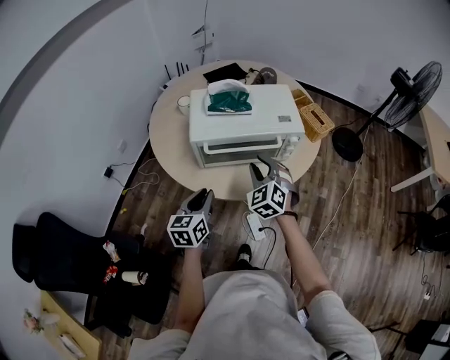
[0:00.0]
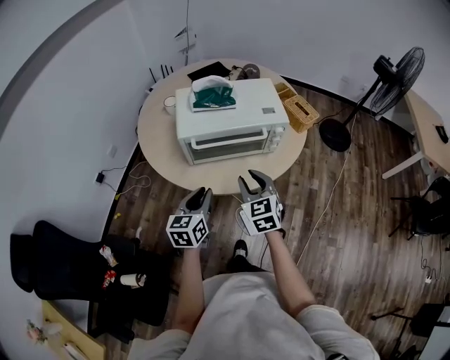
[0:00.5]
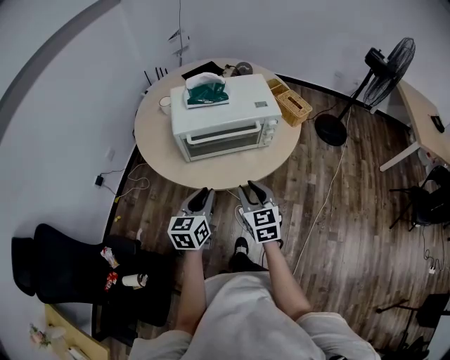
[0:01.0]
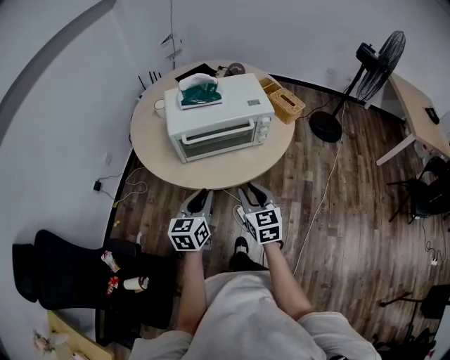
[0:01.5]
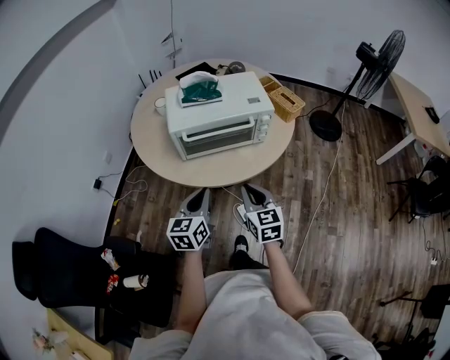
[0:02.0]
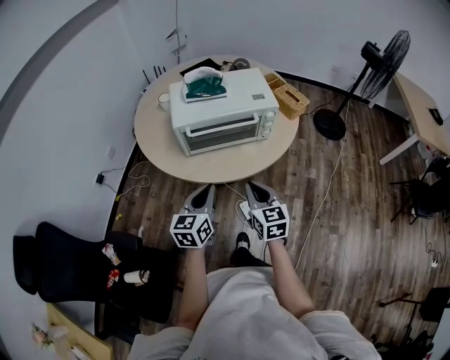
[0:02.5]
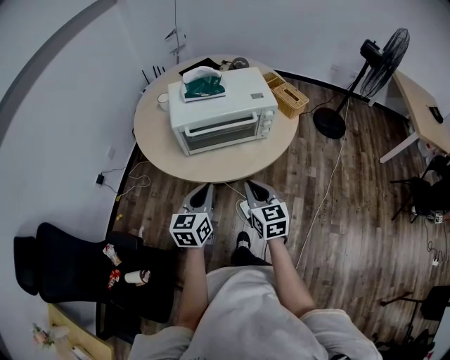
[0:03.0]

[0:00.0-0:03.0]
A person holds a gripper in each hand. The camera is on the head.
0:00.0 to 0:01.5: The left gripper shifts about 10 cm backward and to the right. The right gripper moves backward, roughly 15 cm, and twists about 40 degrees clockwise, seen from behind.
0:01.5 to 0:03.0: The right gripper closes its fingers.

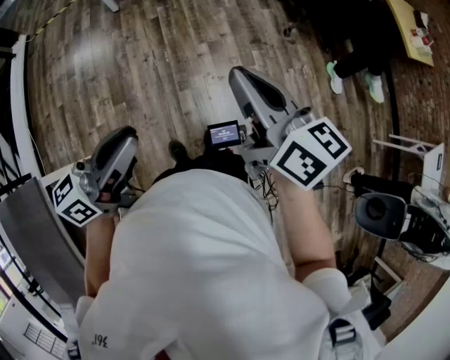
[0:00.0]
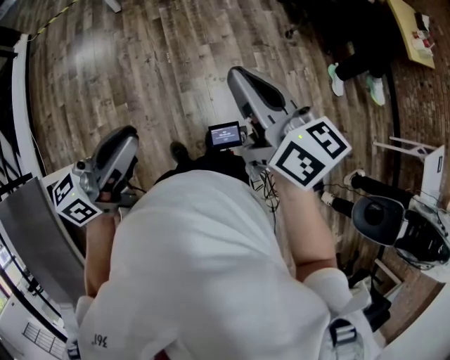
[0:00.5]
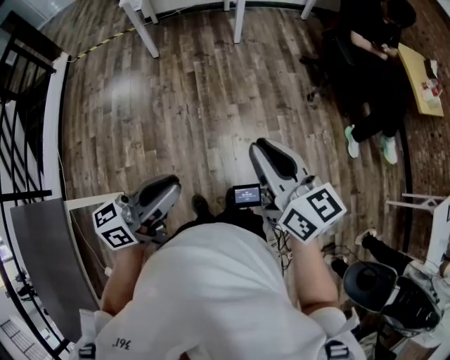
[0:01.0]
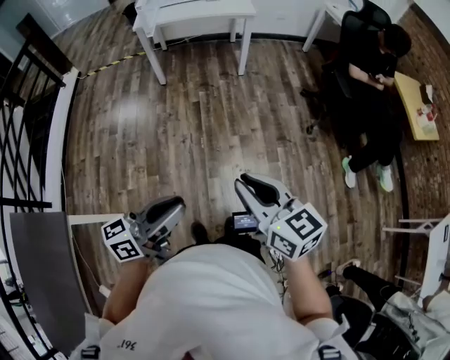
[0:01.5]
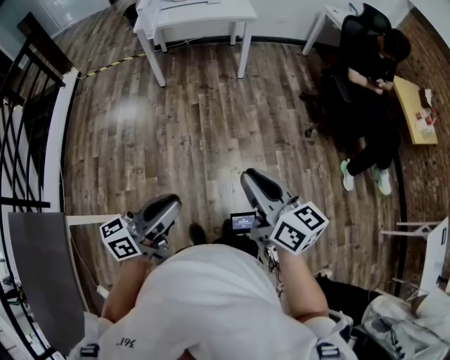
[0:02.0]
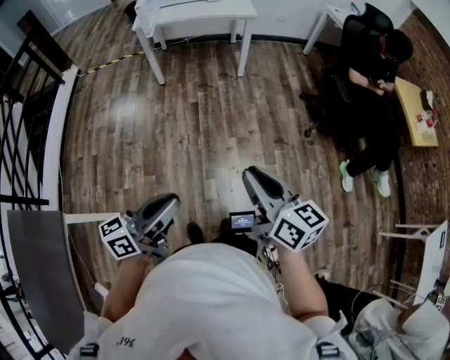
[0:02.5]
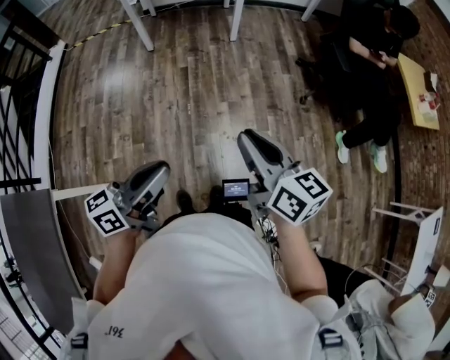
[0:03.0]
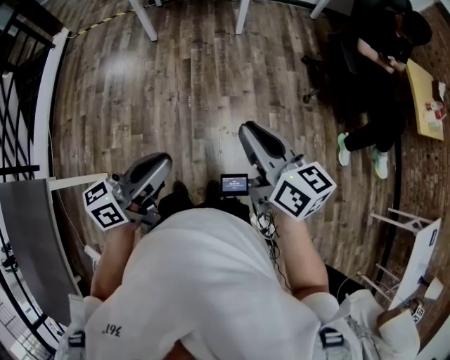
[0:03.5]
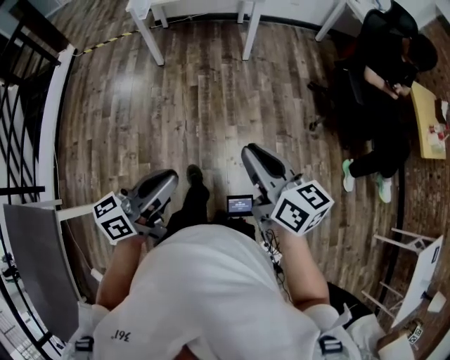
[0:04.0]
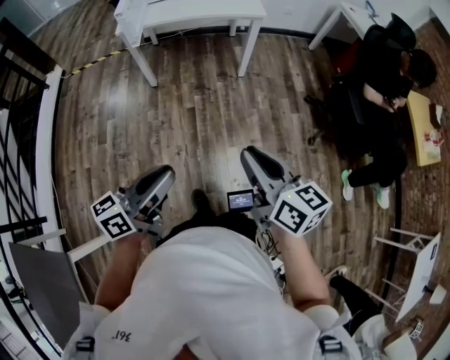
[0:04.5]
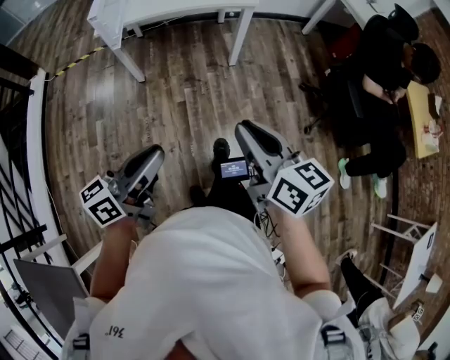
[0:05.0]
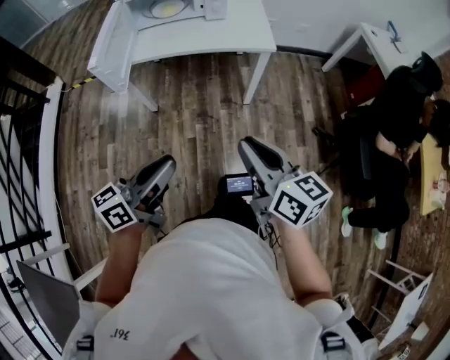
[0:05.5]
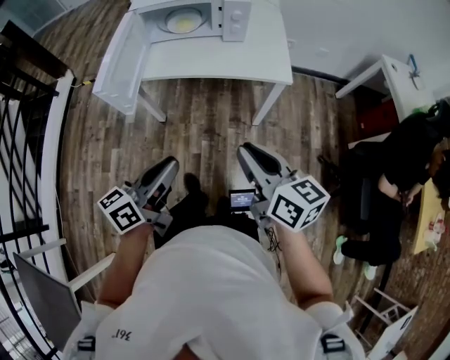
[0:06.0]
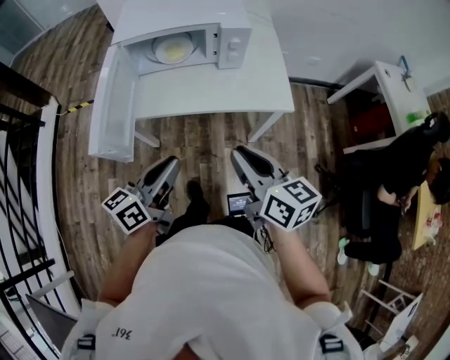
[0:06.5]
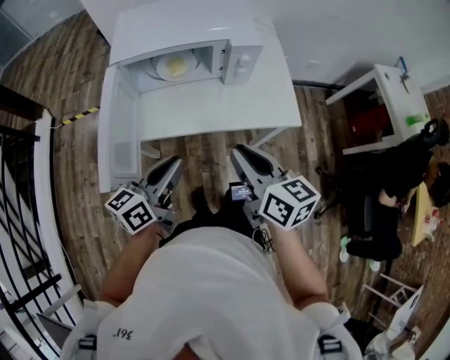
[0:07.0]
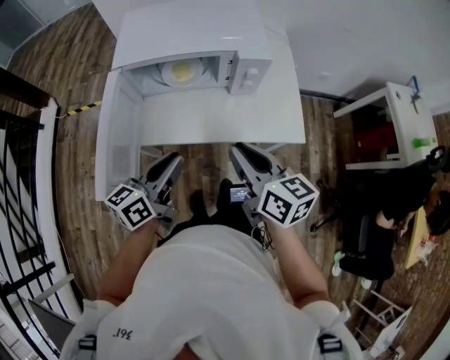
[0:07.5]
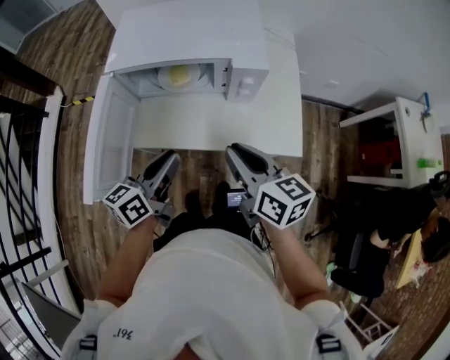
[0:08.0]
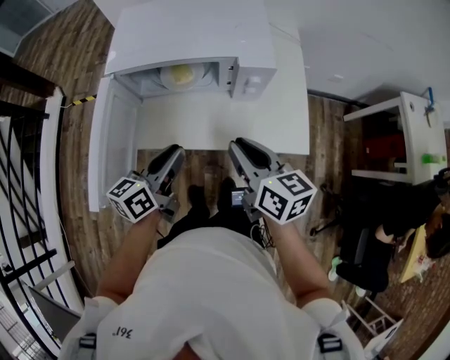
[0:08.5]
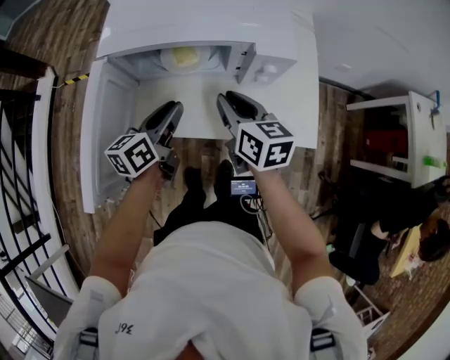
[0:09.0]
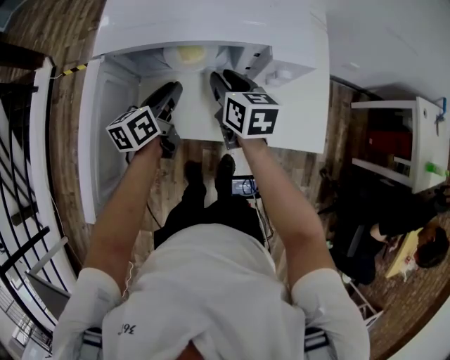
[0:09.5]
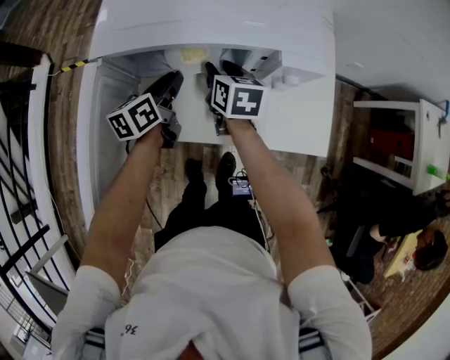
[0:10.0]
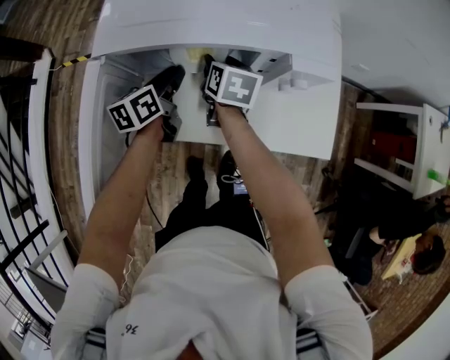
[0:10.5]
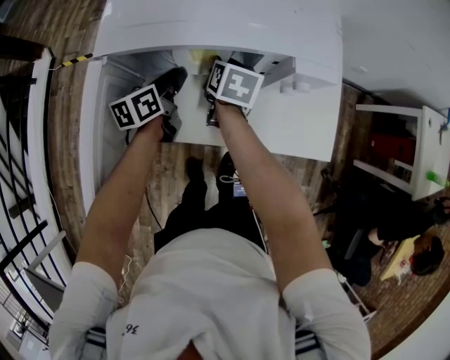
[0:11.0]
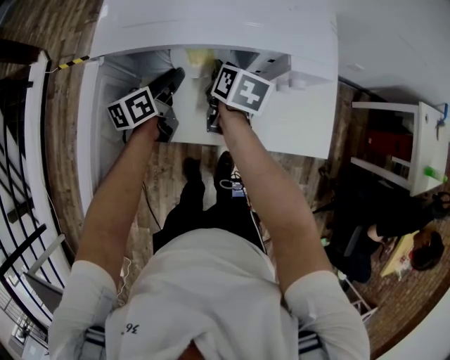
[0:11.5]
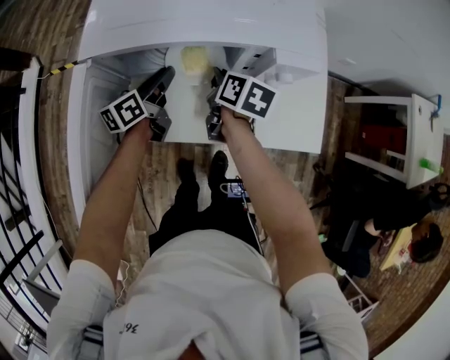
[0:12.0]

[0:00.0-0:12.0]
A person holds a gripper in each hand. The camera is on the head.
0:00.0 to 0:02.0: The right gripper shifts by some 5 cm.
0:02.0 to 0:04.0: Both grippers move forward, approximately 15 cm.
0:04.0 to 0:06.0: The pair of grippers is taken forward, roughly 60 cm.
0:06.0 to 0:08.0: The grippers both shift forward by about 35 cm.
0:08.0 to 0:10.0: The left gripper heads forward and downward, covering some 25 cm. The right gripper is displaced forward, downward and to the left by roughly 35 cm, changes its angle by approximately 20 degrees, and opens its fingers.
0:10.0 to 0:12.0: The right gripper rotates roughly 20 degrees.

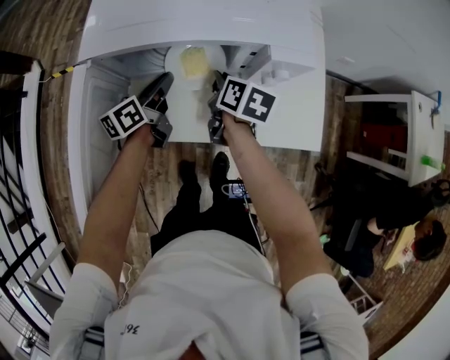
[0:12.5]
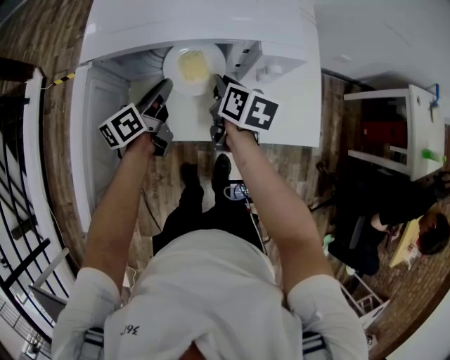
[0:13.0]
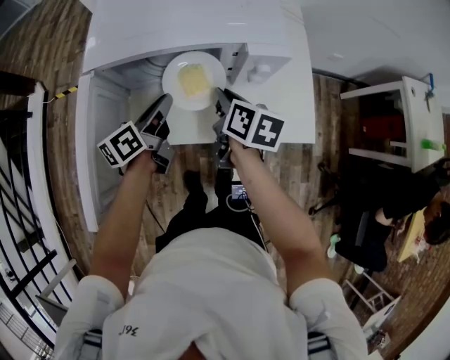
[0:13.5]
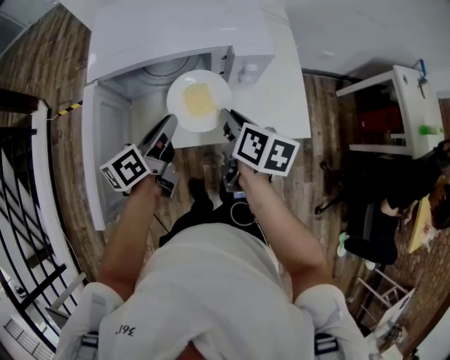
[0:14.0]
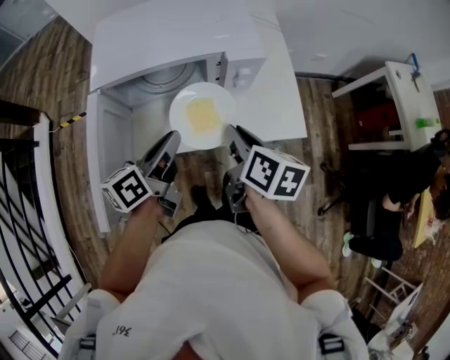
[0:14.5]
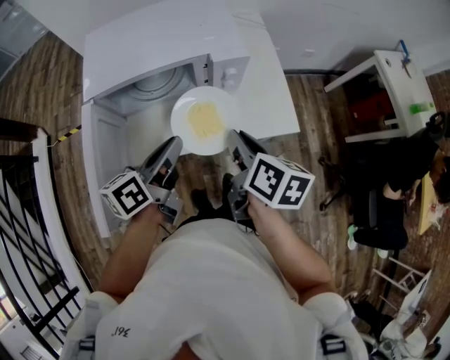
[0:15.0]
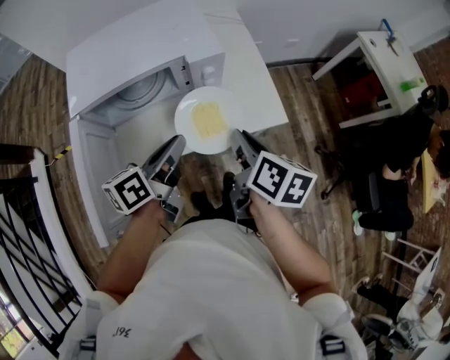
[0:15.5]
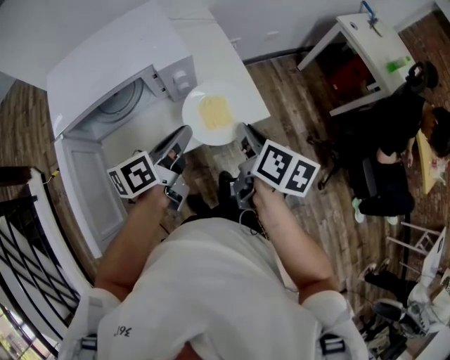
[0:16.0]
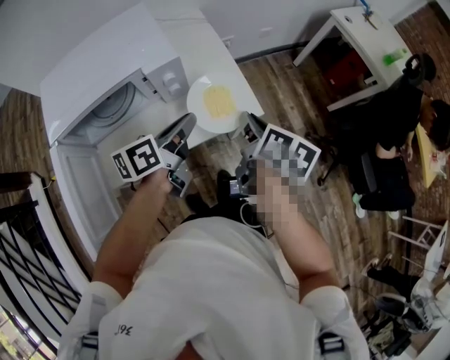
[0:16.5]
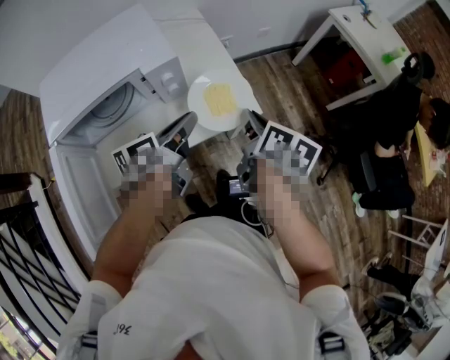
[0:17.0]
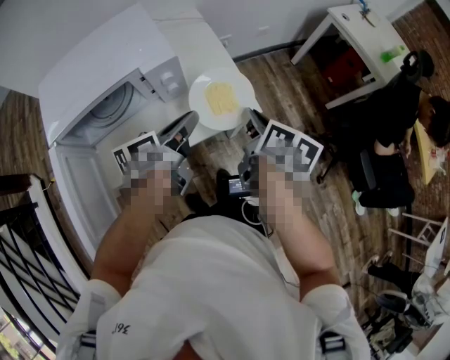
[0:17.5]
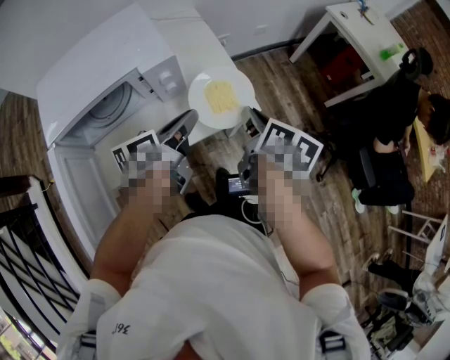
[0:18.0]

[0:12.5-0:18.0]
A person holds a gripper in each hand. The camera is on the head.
0:12.5 to 0:14.5: The grippers both shift backward, upward and to the right by about 25 cm.
0:14.5 to 0:16.0: Both grippers move to the right, approximately 15 cm. The left gripper turns by approximately 20 degrees; the right gripper swivels some 20 degrees.
0:16.0 to 0:18.0: The right gripper changes place by roughly 5 cm, while the left gripper moves approximately 5 cm.

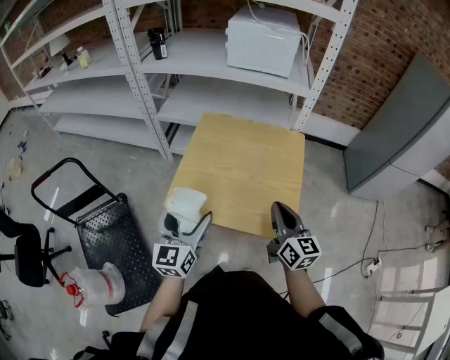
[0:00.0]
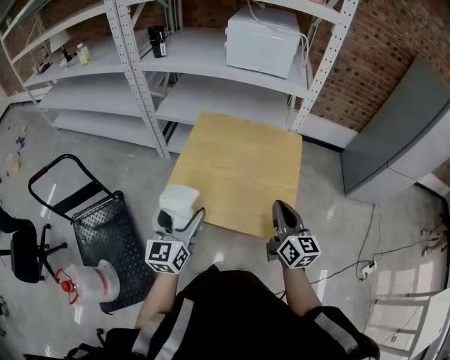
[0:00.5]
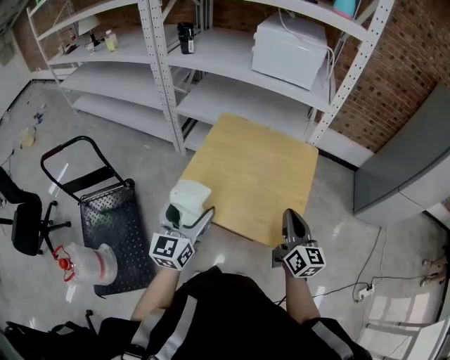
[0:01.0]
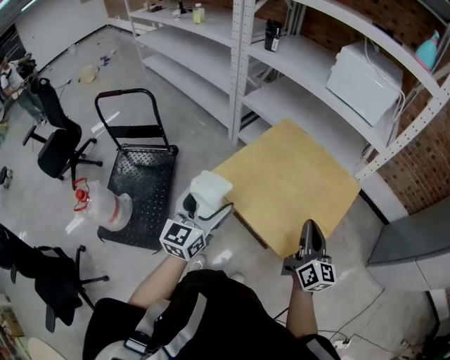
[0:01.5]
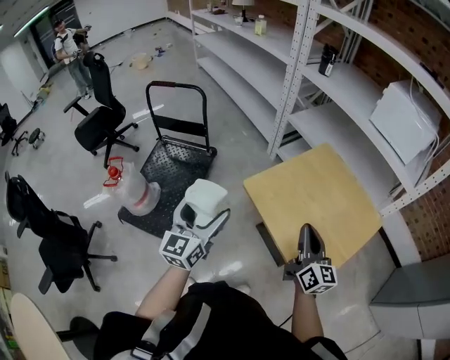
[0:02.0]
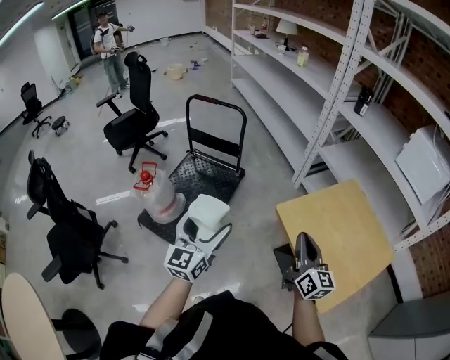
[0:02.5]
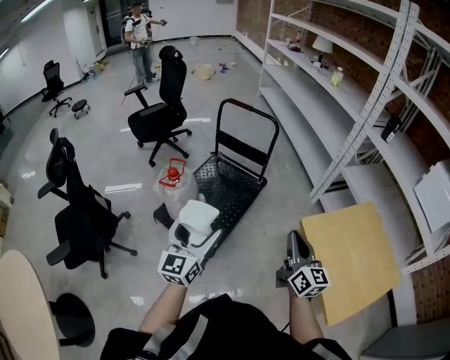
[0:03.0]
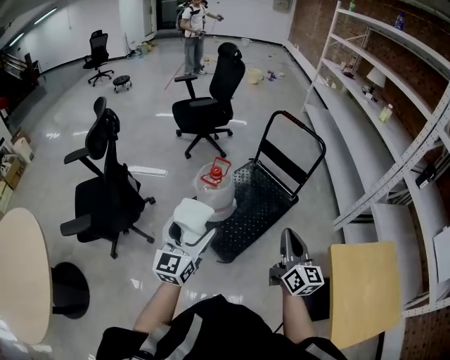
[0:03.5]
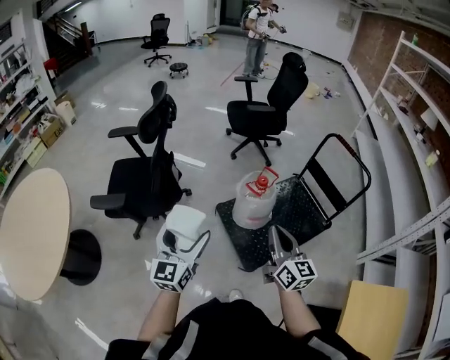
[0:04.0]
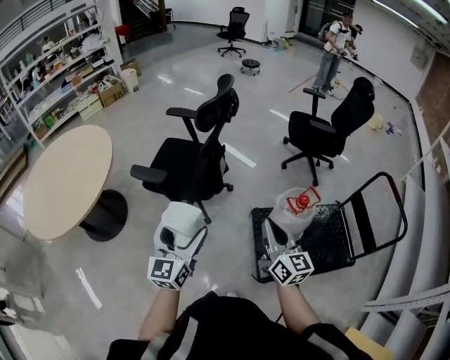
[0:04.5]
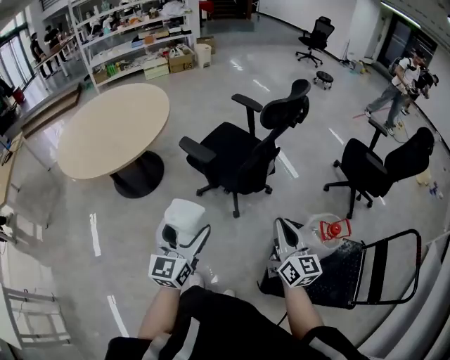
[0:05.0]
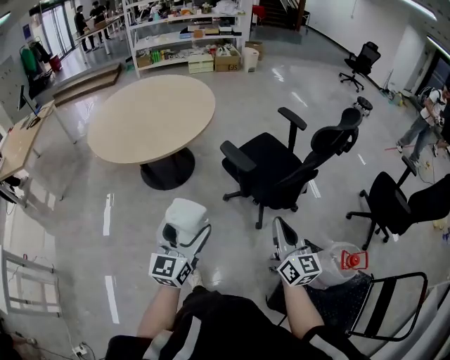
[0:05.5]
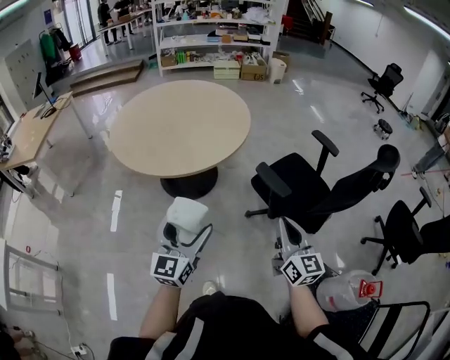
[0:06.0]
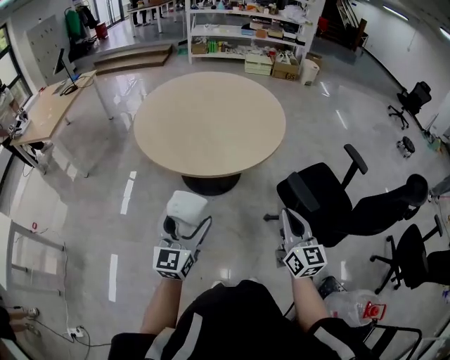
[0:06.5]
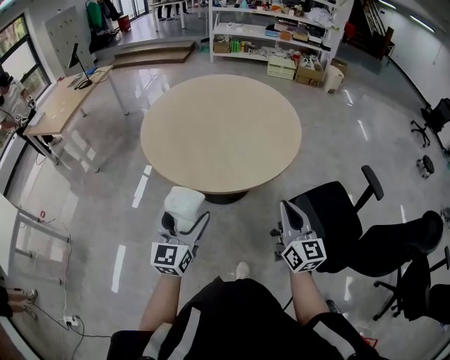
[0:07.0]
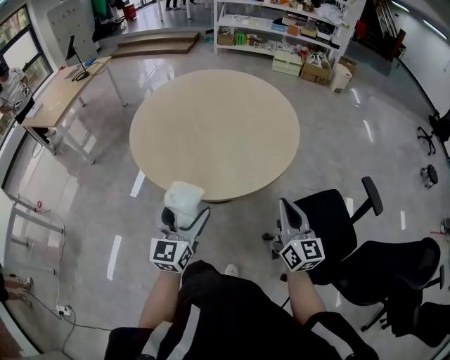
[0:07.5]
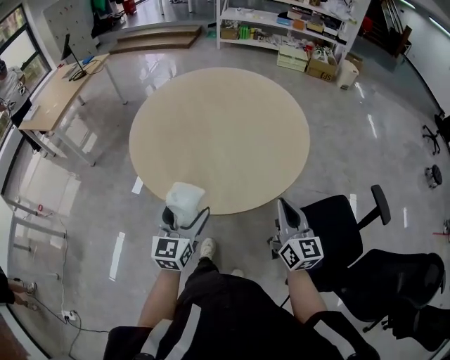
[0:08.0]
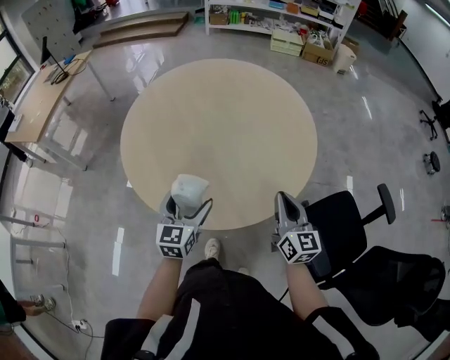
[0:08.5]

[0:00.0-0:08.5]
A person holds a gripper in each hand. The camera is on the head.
0:00.0 to 0:02.0: The left gripper ends up some 15 cm from where it was, and changes its angle by approximately 40 degrees, while the right gripper changes place by some 10 cm, and rotates approximately 30 degrees.
0:02.0 to 0:04.0: Both grippers are carried some 60 cm. The left gripper changes its angle by roughly 60 degrees. The right gripper turns by about 60 degrees.
0:04.0 to 0:06.5: Both grippers are carried some 60 cm. The right gripper turns by about 70 degrees; the left gripper swivels some 70 degrees.
0:06.5 to 0:08.5: Both grippers move forward, roughly 35 cm.
